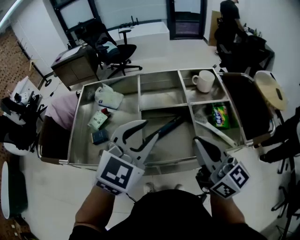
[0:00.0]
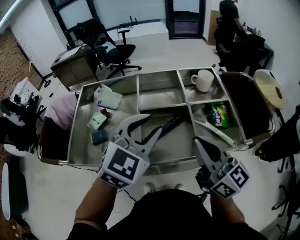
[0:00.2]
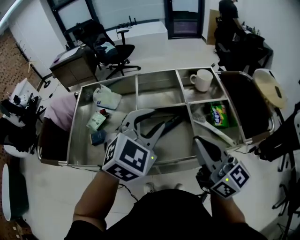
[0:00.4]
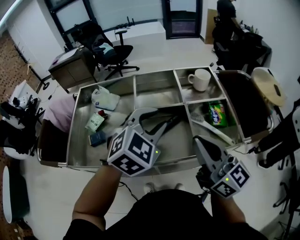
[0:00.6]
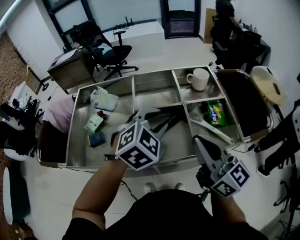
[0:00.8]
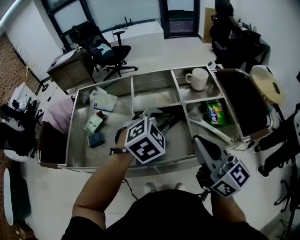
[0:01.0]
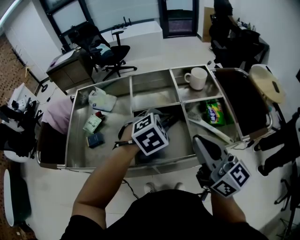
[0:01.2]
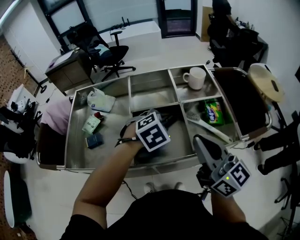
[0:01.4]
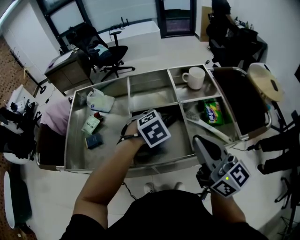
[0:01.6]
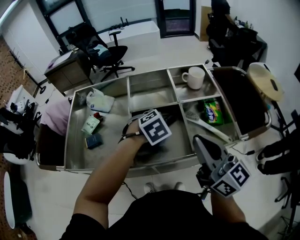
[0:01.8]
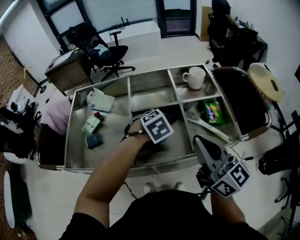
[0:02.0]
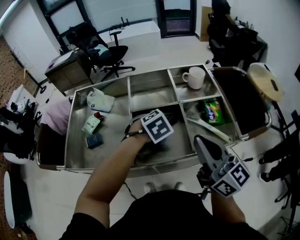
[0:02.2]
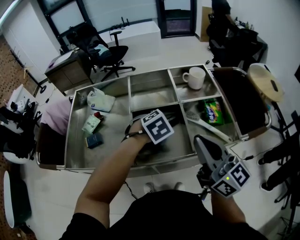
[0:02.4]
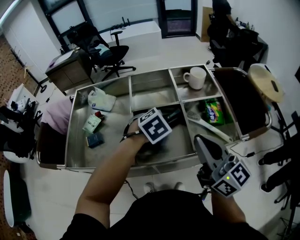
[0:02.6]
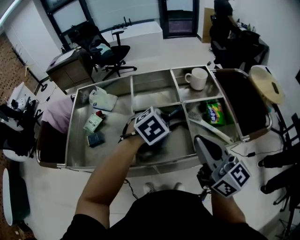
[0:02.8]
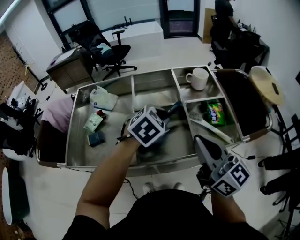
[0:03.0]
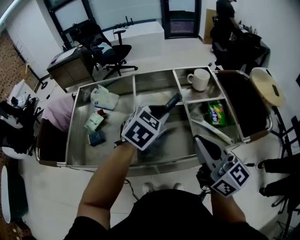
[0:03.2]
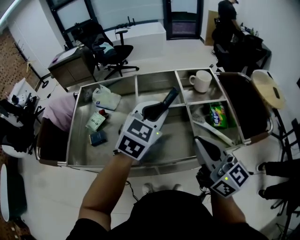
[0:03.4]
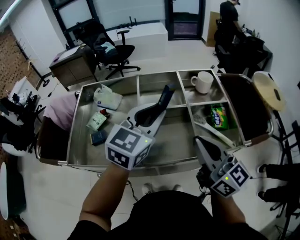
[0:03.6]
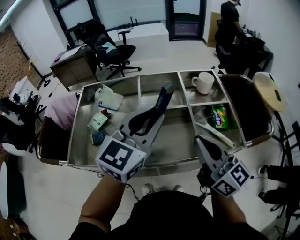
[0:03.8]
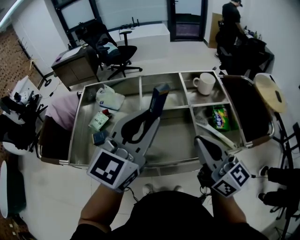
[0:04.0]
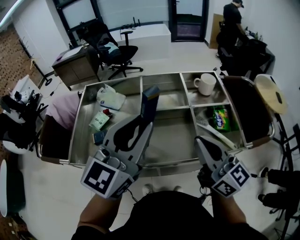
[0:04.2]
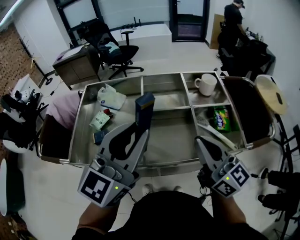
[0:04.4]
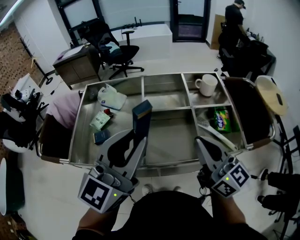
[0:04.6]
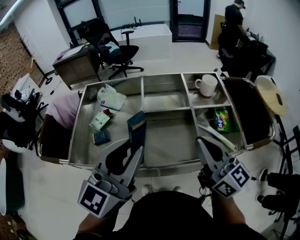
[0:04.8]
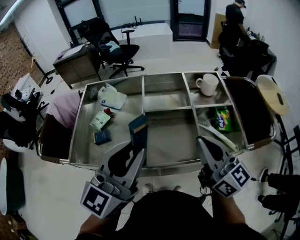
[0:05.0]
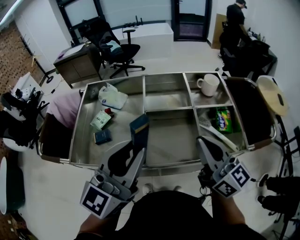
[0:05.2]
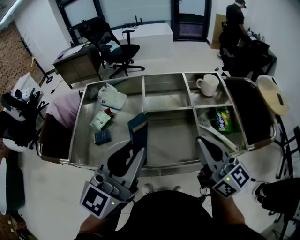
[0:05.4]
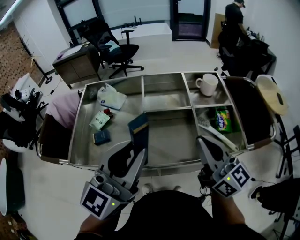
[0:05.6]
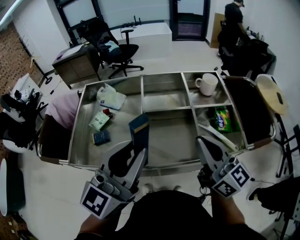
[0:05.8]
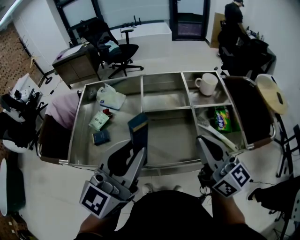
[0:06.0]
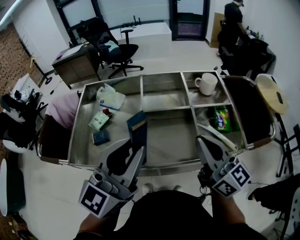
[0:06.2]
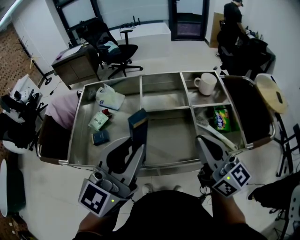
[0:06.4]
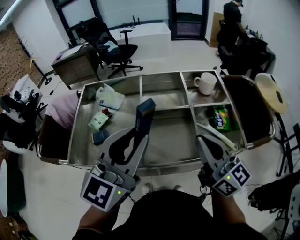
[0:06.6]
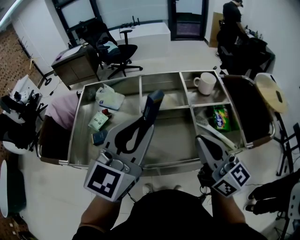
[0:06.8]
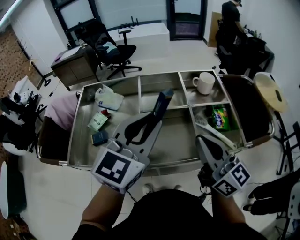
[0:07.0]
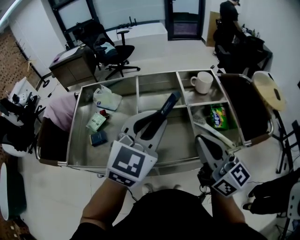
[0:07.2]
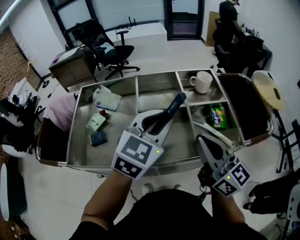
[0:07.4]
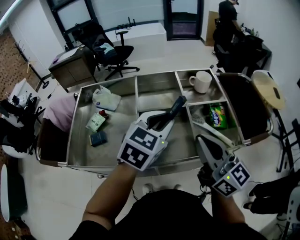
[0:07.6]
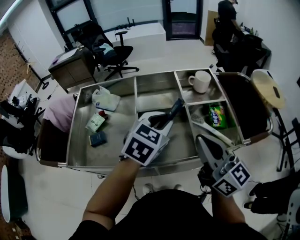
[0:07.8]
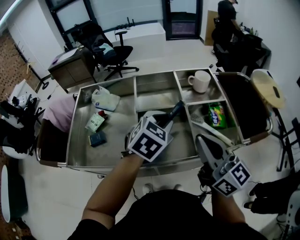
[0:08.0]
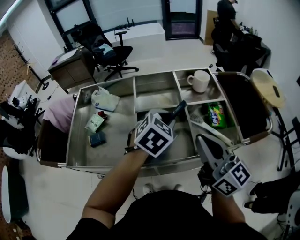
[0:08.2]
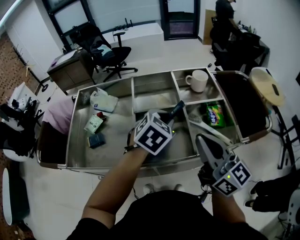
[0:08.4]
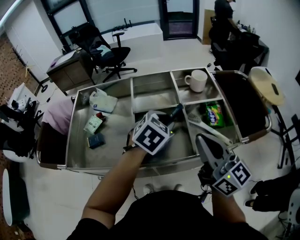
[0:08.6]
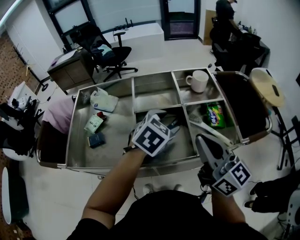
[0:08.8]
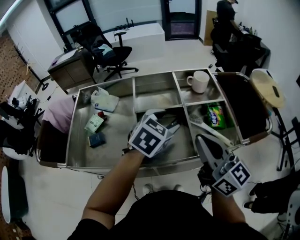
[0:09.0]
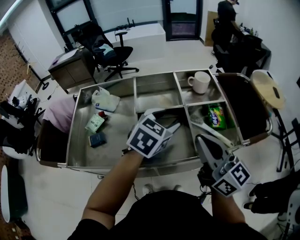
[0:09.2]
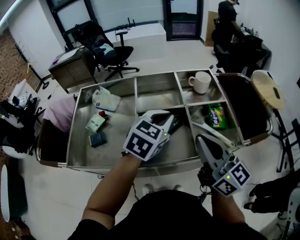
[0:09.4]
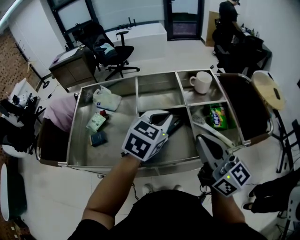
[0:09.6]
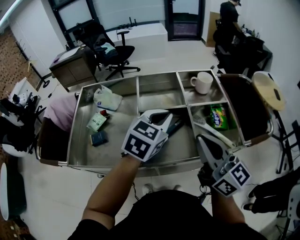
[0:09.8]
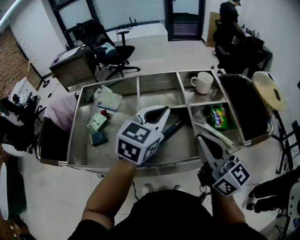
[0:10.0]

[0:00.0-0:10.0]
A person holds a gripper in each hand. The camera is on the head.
0:00.0 to 0:01.4: The left gripper goes roughly 20 cm downward, forward and to the right, and points its fingers some 40 degrees further downward.
0:01.4 to 0:02.8: The grippers make only small movements.
0:02.8 to 0:04.2: The left gripper moves upward and backward, approximately 25 cm, and tilts its fingers some 60 degrees upward.
0:04.2 to 0:05.8: The left gripper changes place by roughly 5 cm.
0:05.8 to 0:07.2: The left gripper shifts some 10 cm forward and to the right, and rotates approximately 30 degrees.
0:07.2 to 0:08.6: The left gripper shifts about 15 cm downward and to the right, and angles its fingers downward, by some 30 degrees.
0:08.6 to 0:10.0: The left gripper moves upward, roughly 10 cm, rotates some 30 degrees, and closes up.

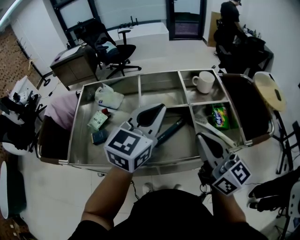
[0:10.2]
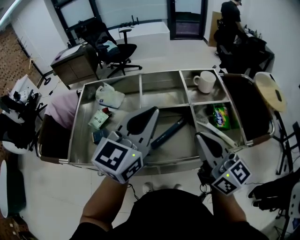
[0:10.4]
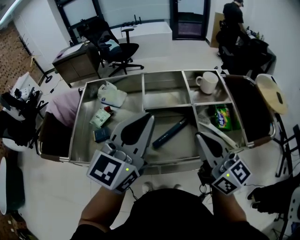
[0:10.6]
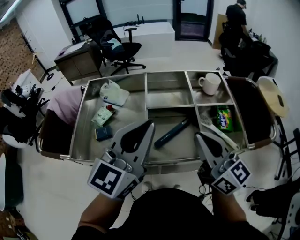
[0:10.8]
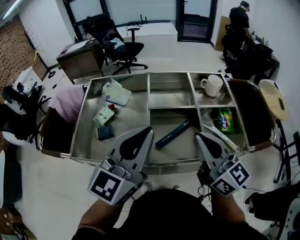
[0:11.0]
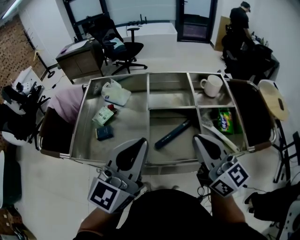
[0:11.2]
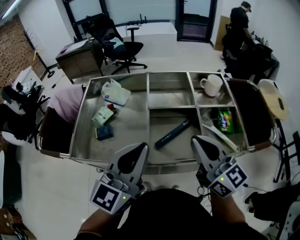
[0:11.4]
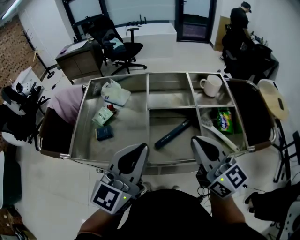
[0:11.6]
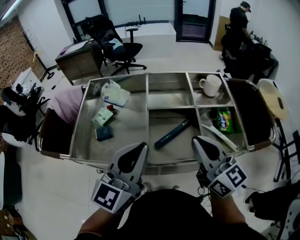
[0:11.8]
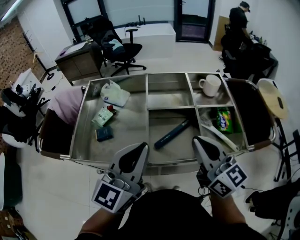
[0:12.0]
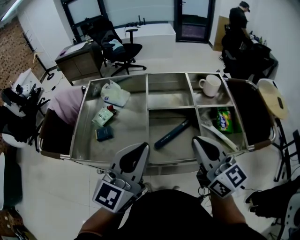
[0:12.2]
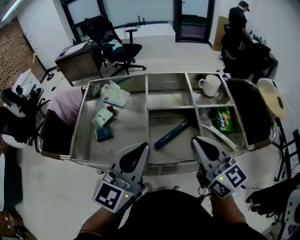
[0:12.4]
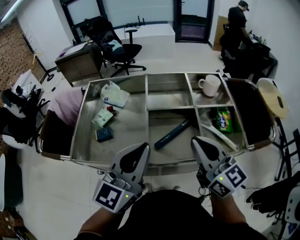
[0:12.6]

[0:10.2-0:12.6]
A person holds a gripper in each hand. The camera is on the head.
0:10.2 to 0:11.4: The left gripper goes about 15 cm backward and to the left.
0:11.4 to 0:12.6: Both grippers stay about where they are.

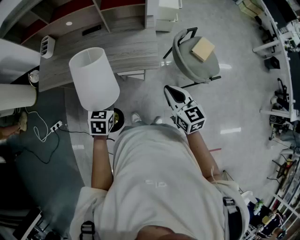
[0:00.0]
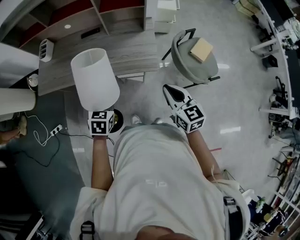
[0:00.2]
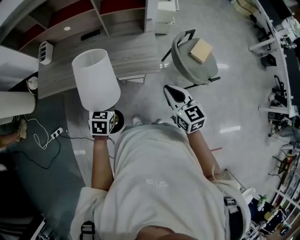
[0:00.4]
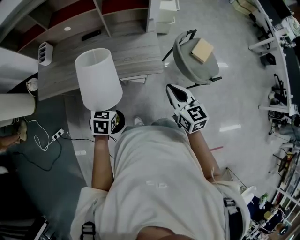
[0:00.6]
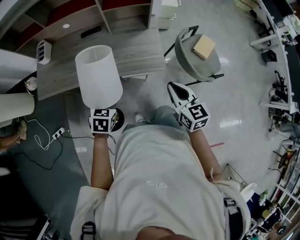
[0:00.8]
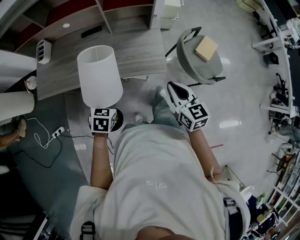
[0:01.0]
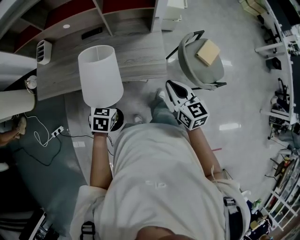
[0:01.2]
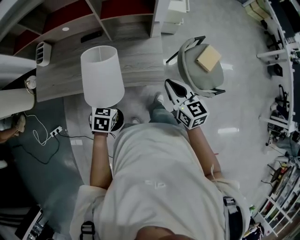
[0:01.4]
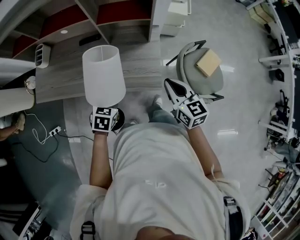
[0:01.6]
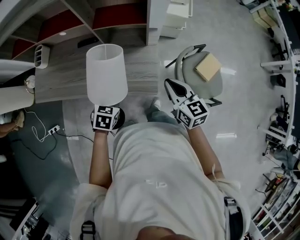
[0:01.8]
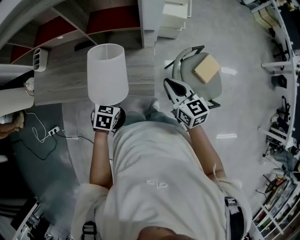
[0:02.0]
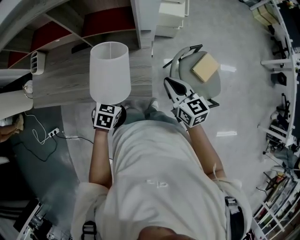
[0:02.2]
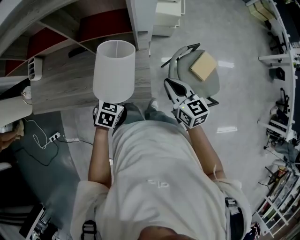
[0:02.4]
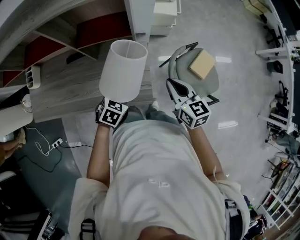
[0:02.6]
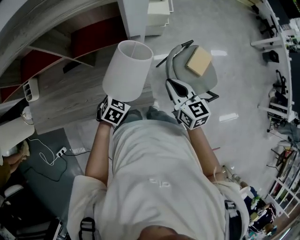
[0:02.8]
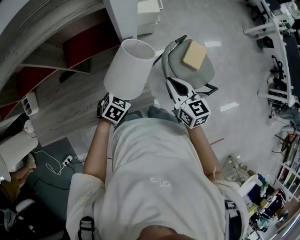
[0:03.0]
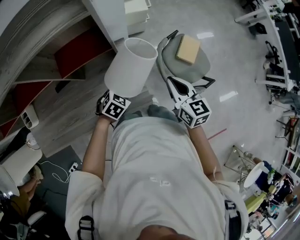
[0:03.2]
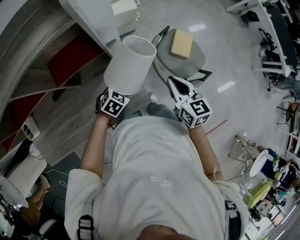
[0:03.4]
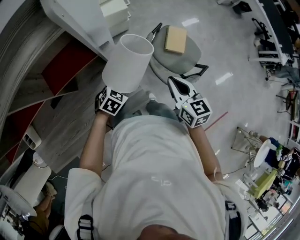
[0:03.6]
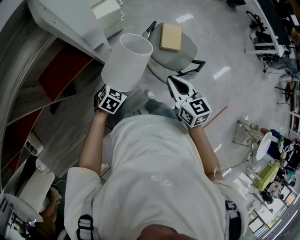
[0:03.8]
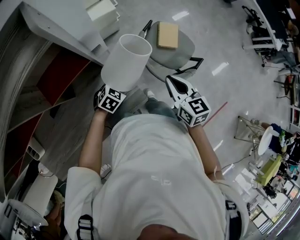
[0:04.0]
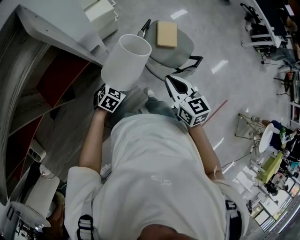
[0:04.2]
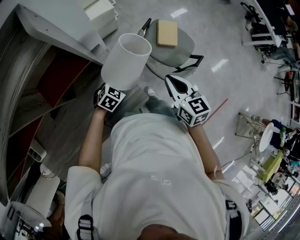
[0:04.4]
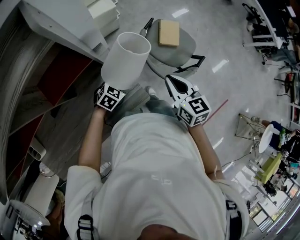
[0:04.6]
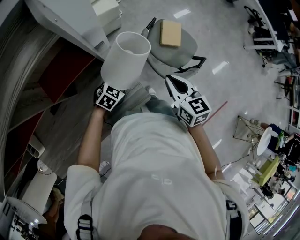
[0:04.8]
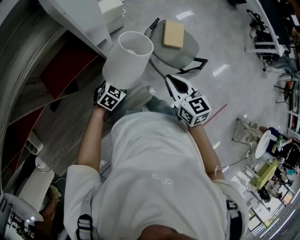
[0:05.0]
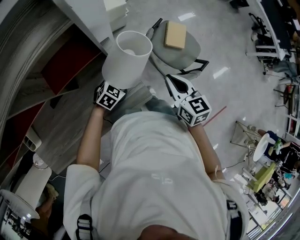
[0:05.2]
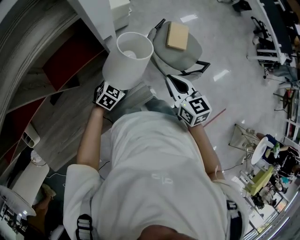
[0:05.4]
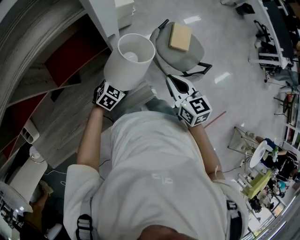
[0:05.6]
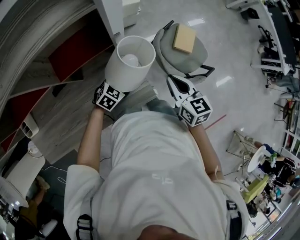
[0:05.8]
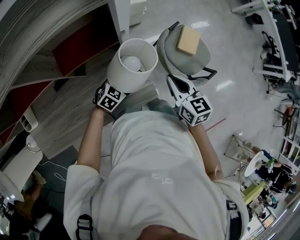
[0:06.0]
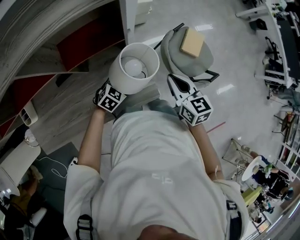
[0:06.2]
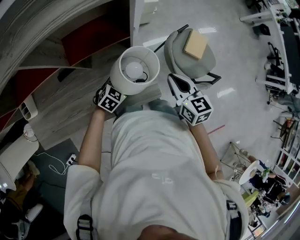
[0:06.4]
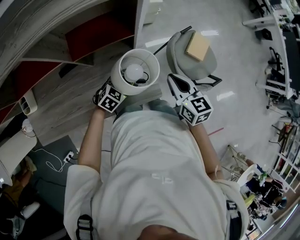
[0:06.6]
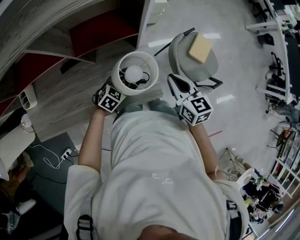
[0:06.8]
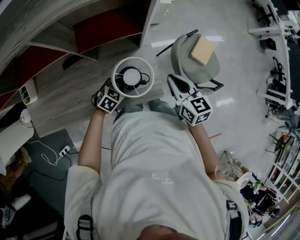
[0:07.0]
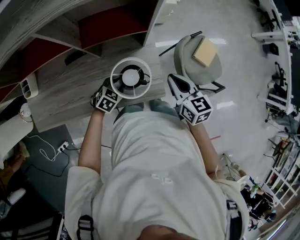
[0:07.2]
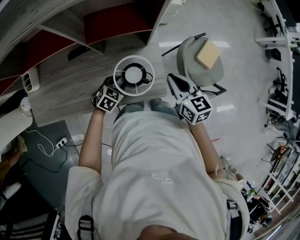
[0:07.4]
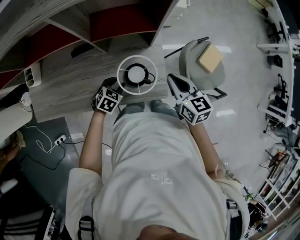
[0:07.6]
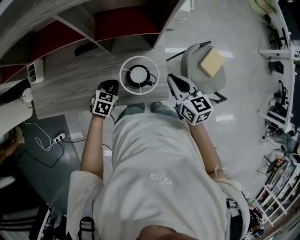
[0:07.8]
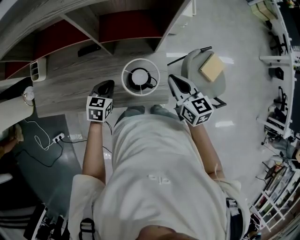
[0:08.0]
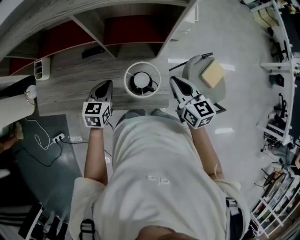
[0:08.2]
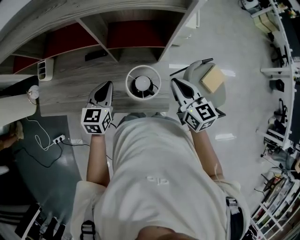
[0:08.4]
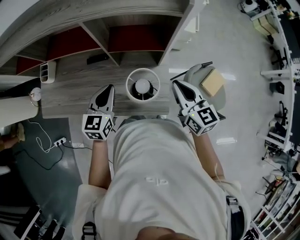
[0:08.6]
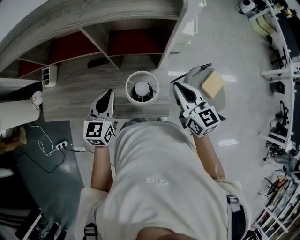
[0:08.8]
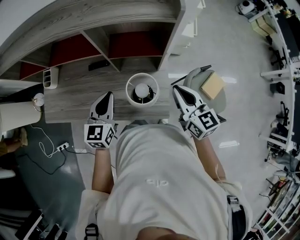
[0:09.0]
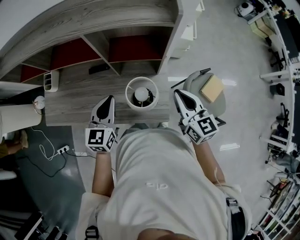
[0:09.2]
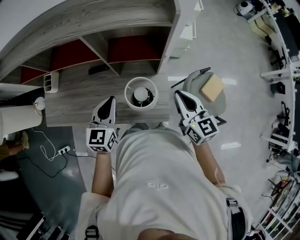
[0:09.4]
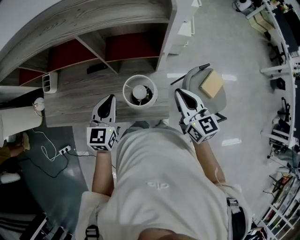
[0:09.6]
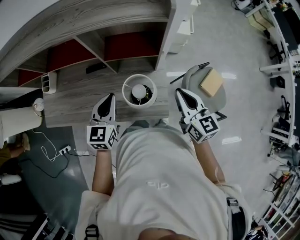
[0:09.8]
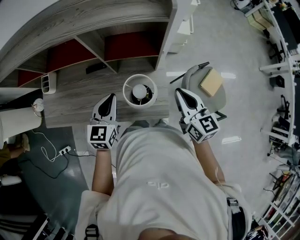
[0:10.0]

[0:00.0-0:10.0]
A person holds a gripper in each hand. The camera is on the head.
0:00.0 to 0:01.4: Both grippers move forward, about 15 cm.
0:01.4 to 0:02.8: Both grippers move forward and to the right, approximately 20 cm. The left gripper changes its angle by some 30 degrees.
0:02.8 to 0:04.2: The right gripper moves approximately 10 cm, and swivels roughly 30 degrees. Meanwhile the left gripper moves roughly 10 cm, and turns by roughly 30 degrees.
0:04.2 to 0:05.8: The two grippers go approximately 5 cm to the left.
0:05.8 to 0:07.2: The left gripper heads to the left and backward, covering some 15 cm, and rotates approximately 20 degrees; the right gripper goes about 10 cm to the left.
0:07.2 to 0:08.6: The left gripper moves upward, about 25 cm, angles its fingers upward, by about 30 degrees, and closes its fingers. Meanwhile the right gripper heads upward, covering roughly 10 cm.
0:08.6 to 0:10.0: There are only small adjustments of the grippers.

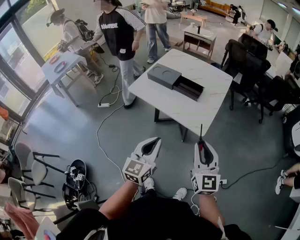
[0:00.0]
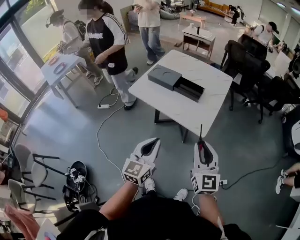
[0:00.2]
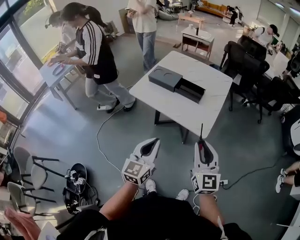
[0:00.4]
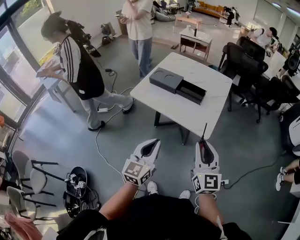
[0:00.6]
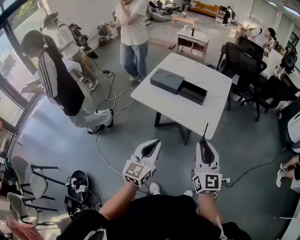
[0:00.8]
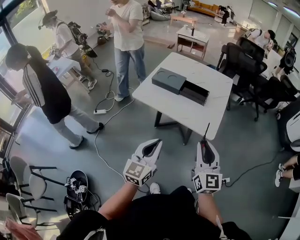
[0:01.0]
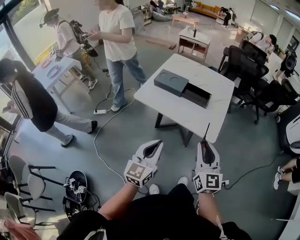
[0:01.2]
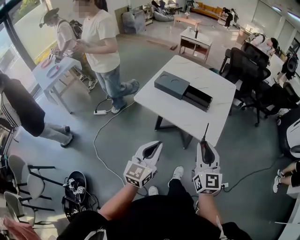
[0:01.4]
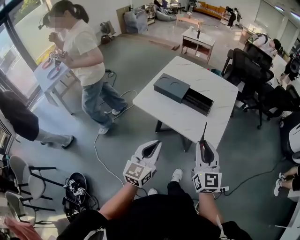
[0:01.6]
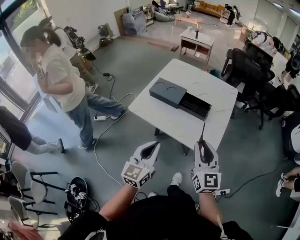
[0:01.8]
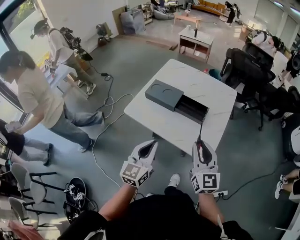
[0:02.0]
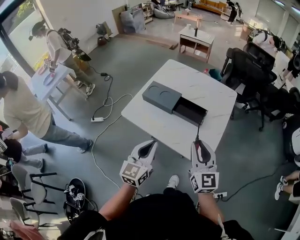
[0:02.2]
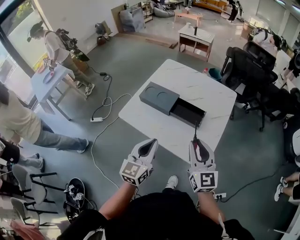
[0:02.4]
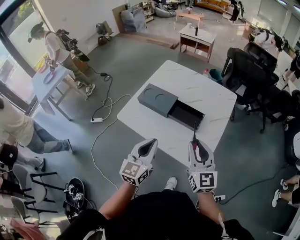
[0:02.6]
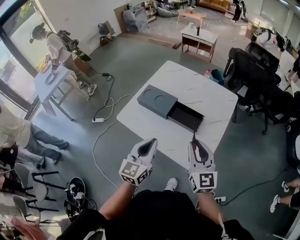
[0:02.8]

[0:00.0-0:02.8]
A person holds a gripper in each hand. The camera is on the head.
0:00.0 to 0:01.4: The left gripper moves to the left, roughly 10 cm; the right gripper travels to the left and forward by some 15 cm.
0:01.4 to 0:02.8: Both grippers travel together forward, some 20 cm.
